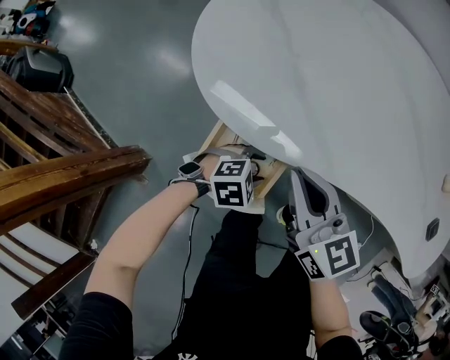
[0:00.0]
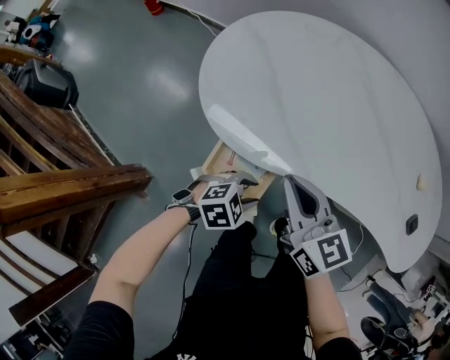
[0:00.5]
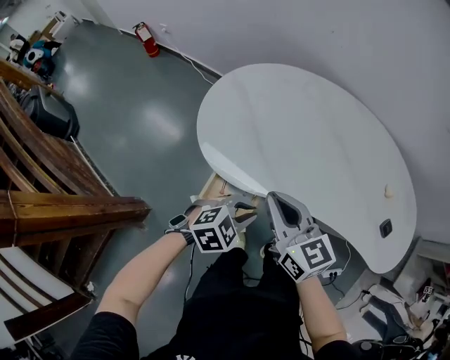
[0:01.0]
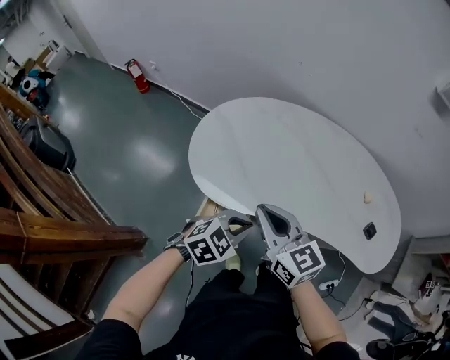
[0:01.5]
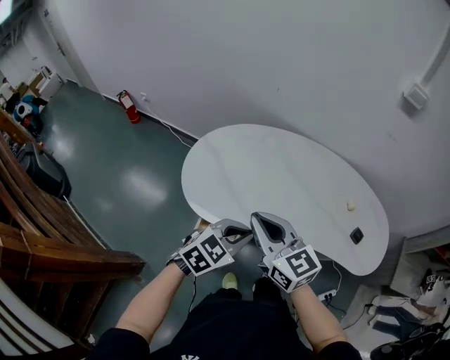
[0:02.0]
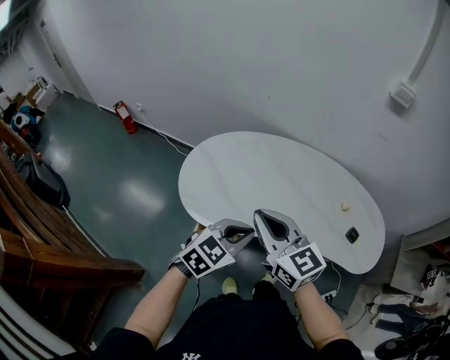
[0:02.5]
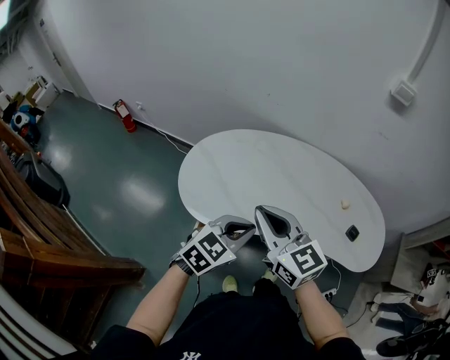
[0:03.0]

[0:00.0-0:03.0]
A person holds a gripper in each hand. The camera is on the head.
0:00.0 to 0:01.5: The two grippers go some 25 cm upward. The left gripper turns by about 20 degrees, and closes its fingers.
0:01.5 to 0:03.0: The grippers both shift upward by approximately 10 cm.

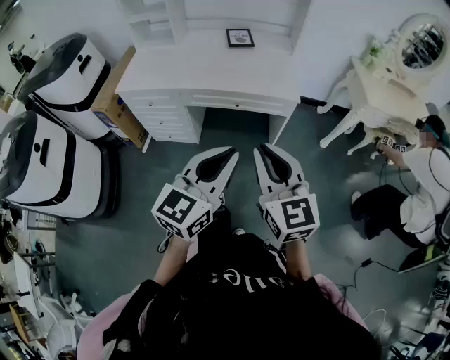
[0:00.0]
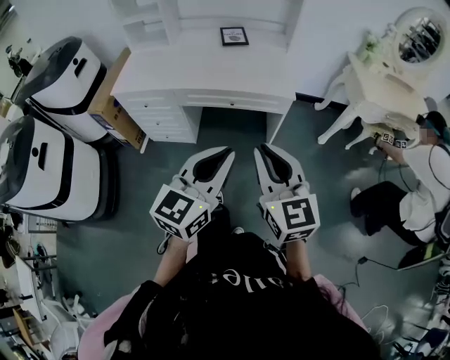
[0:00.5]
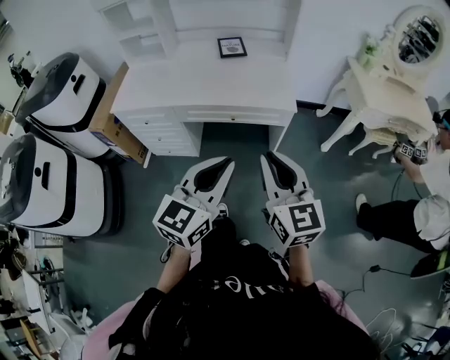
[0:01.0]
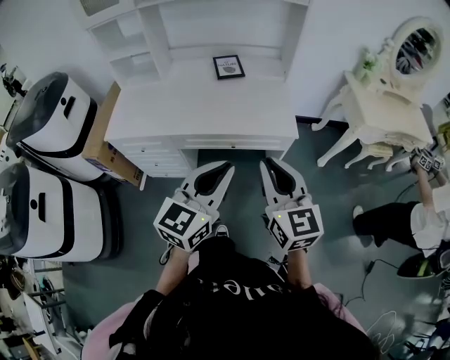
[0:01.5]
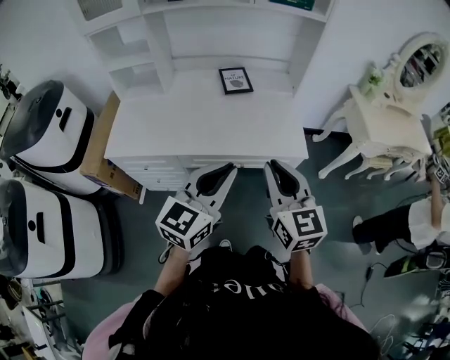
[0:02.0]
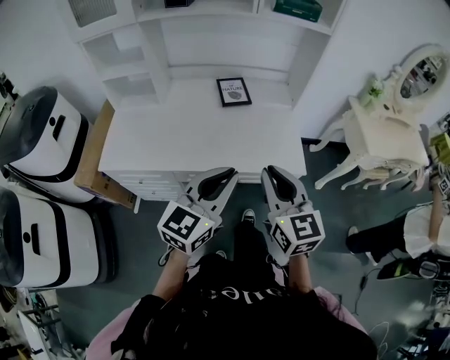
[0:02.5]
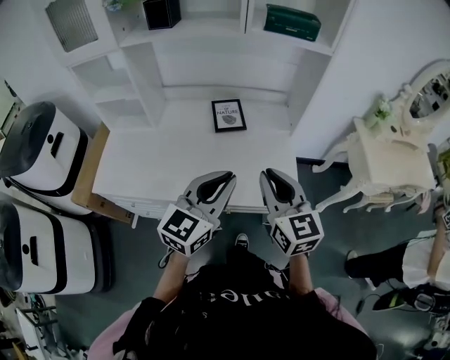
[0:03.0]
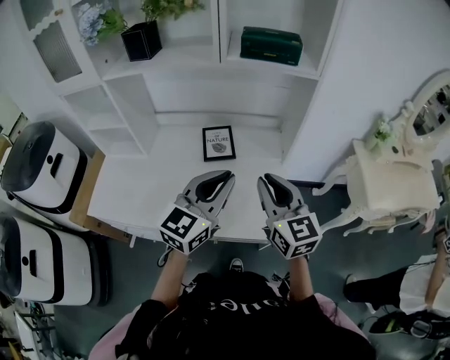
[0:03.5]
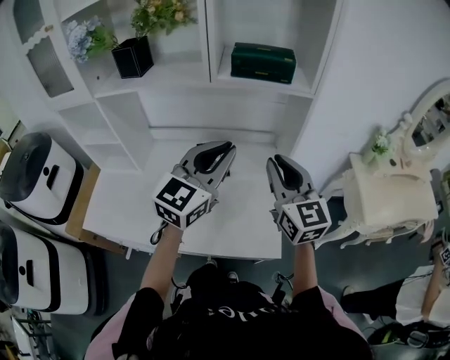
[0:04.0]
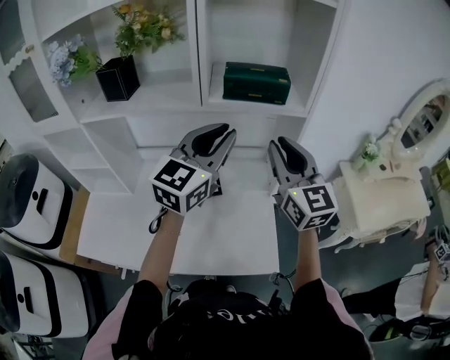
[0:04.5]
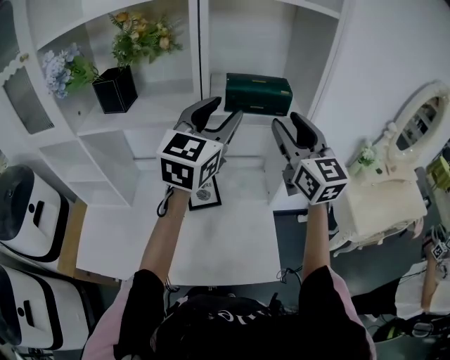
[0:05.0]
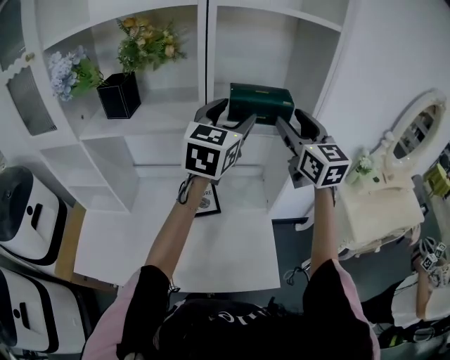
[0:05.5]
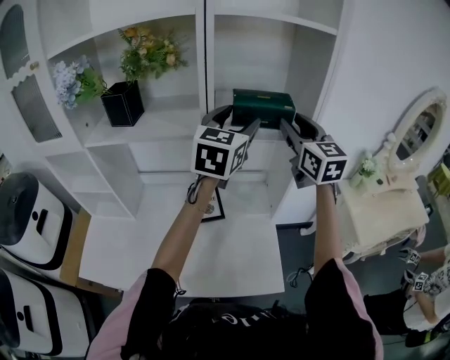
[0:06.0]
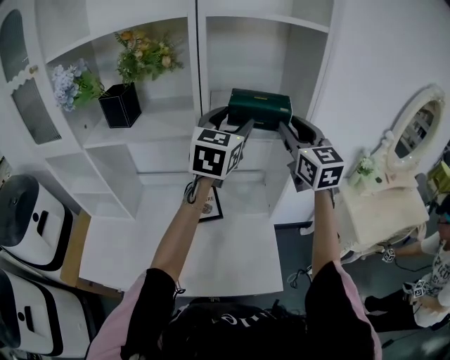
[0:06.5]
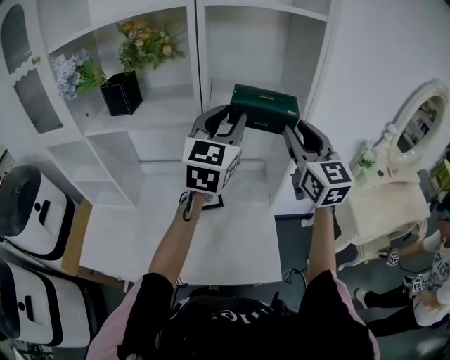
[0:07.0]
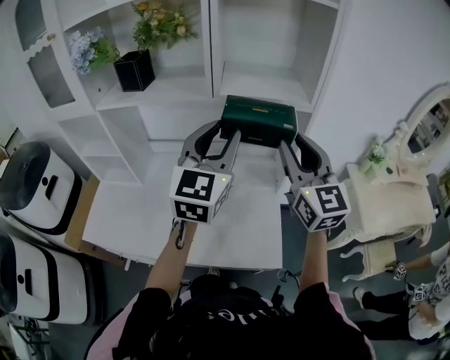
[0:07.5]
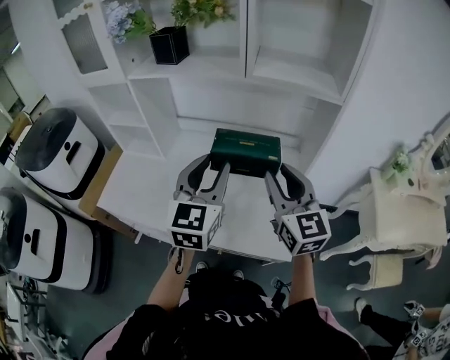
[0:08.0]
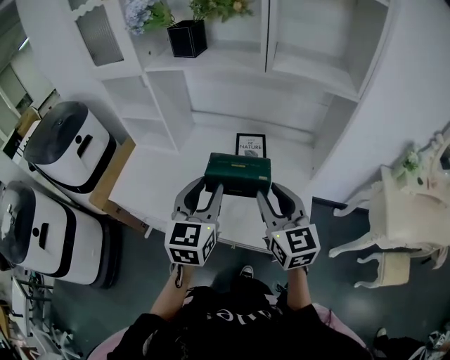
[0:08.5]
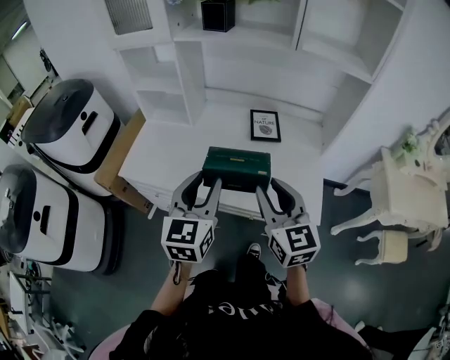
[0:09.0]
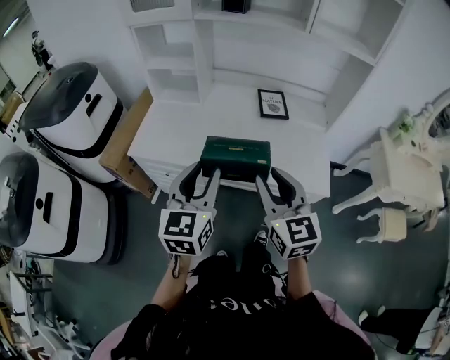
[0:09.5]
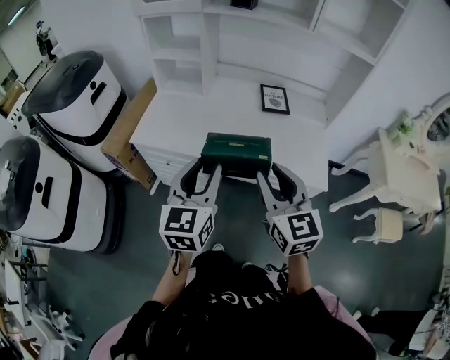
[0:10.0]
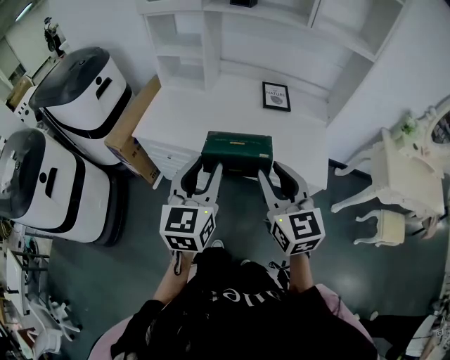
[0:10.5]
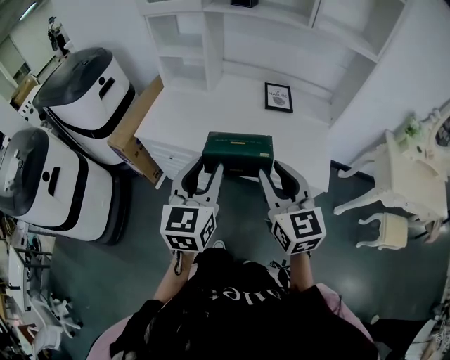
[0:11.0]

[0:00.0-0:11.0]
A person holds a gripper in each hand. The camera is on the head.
0:00.0 to 0:02.0: The left gripper goes some 30 cm forward and to the left. The right gripper moves forward, roughly 25 cm.
0:02.0 to 0:03.5: Both grippers move forward, roughly 30 cm.
0:03.5 to 0:05.5: Both grippers move forward and upward, roughly 35 cm. The right gripper opens up. The left gripper opens.
0:05.5 to 0:07.5: The grippers both shift backward by approximately 15 cm. The left gripper closes up.
0:07.5 to 0:09.0: The two grippers go some 40 cm to the left, backward and downward. The left gripper swivels roughly 30 degrees. The right gripper rotates roughly 20 degrees.
0:09.0 to 0:11.0: Both grippers travel together backward and to the left, about 15 cm.

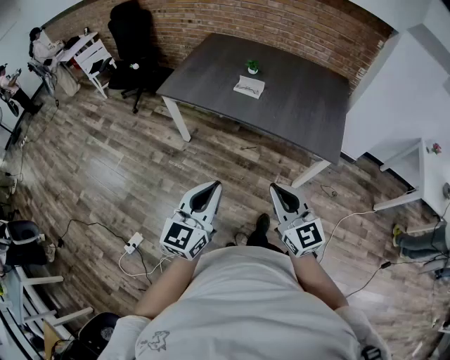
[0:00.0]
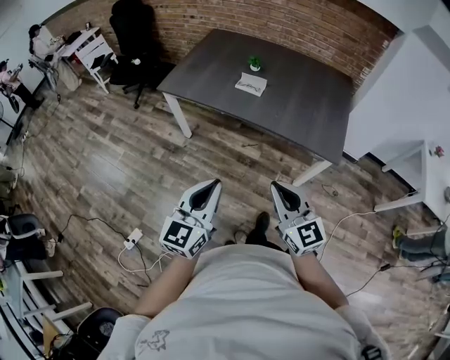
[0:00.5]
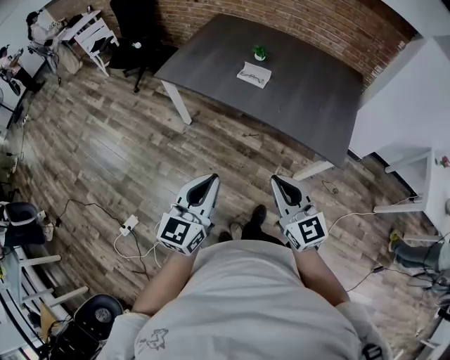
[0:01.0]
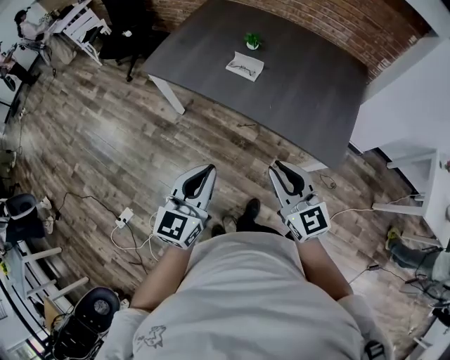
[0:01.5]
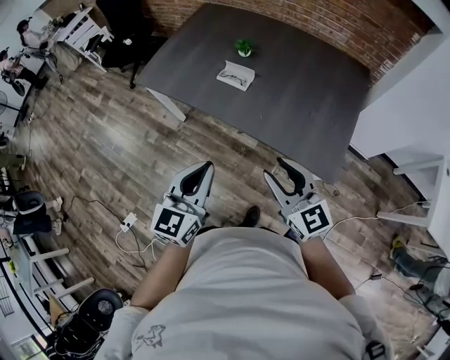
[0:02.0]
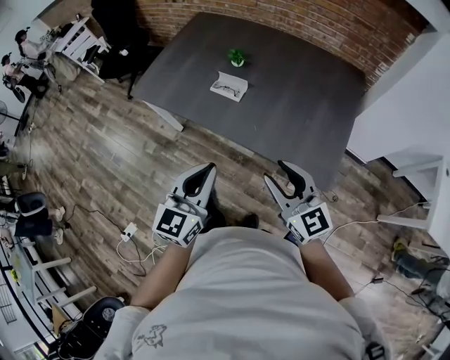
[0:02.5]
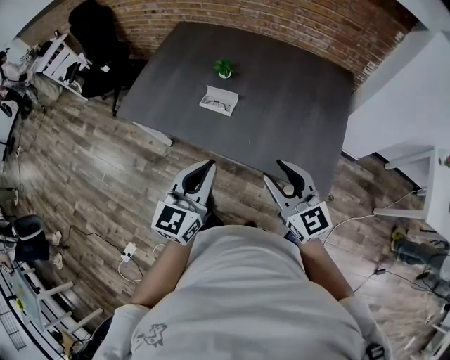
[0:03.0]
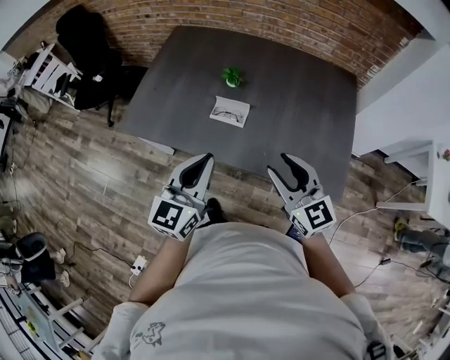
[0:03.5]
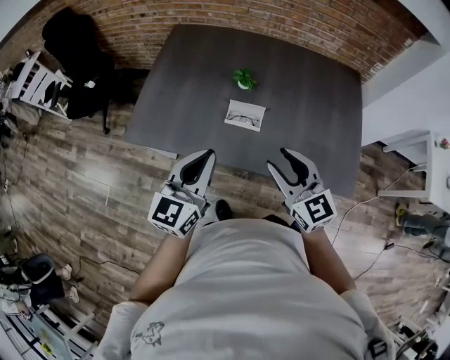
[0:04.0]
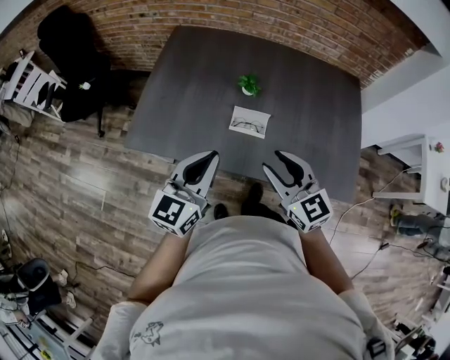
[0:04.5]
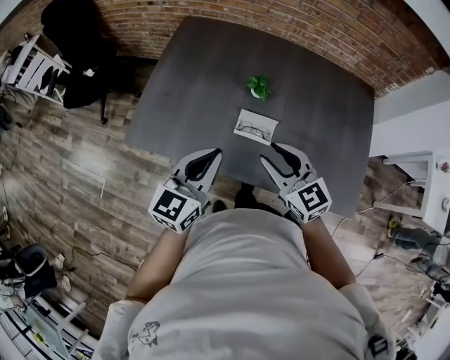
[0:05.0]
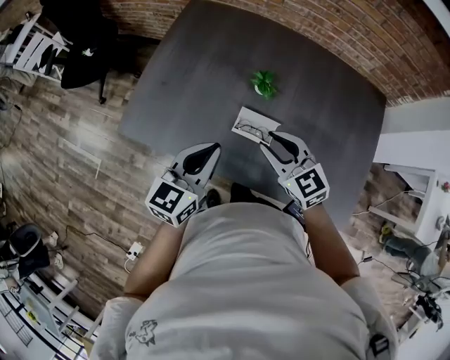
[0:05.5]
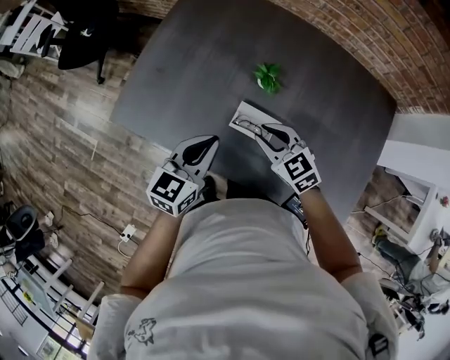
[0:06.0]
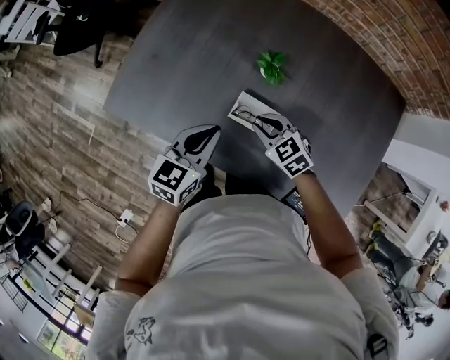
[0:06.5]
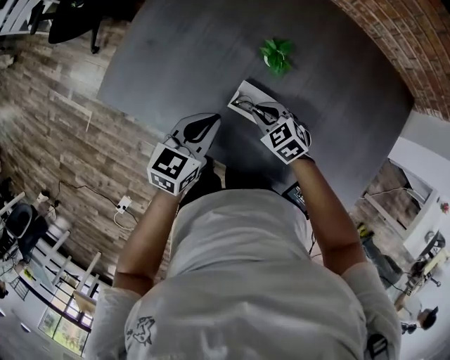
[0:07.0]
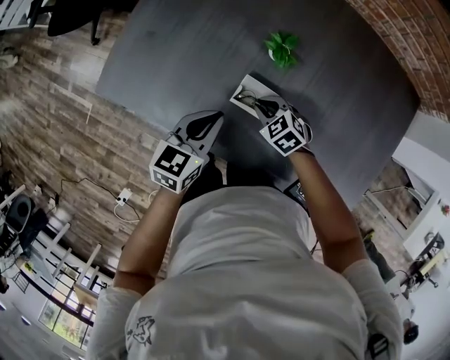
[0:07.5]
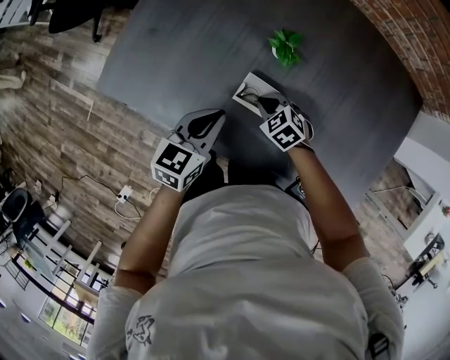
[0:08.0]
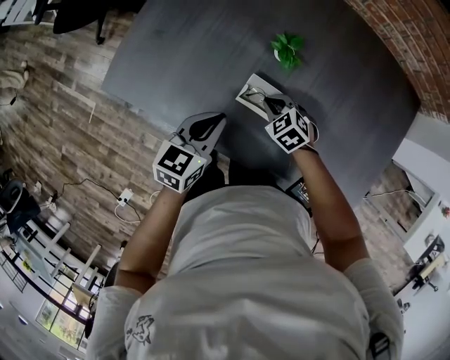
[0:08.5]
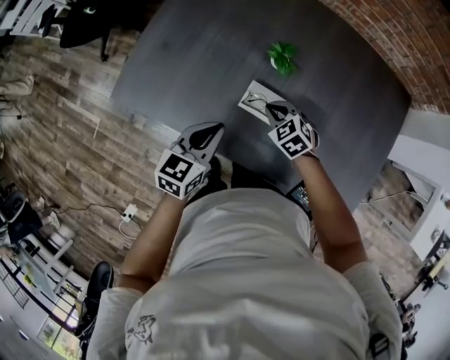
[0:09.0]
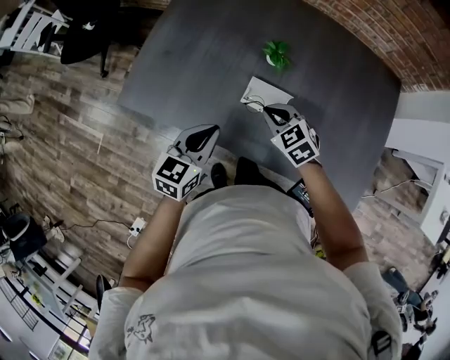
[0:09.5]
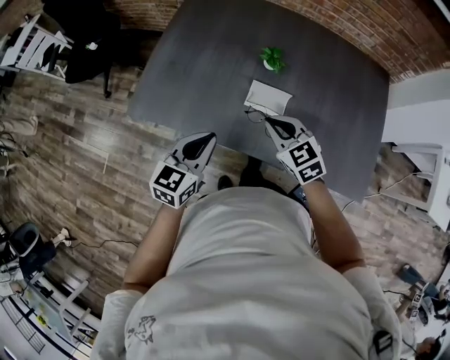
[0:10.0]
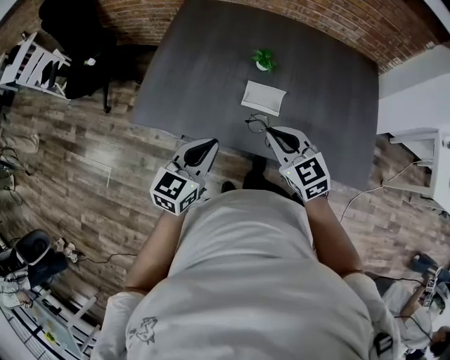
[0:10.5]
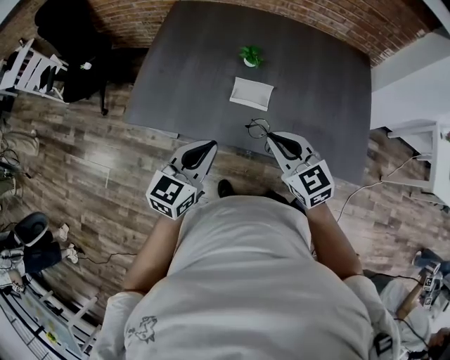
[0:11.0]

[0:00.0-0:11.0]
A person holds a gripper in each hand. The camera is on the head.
0:00.0 to 0:02.0: Both grippers move forward and to the right, about 25 cm. The right gripper opens.
0:02.0 to 0:03.5: The grippers both shift forward by some 20 cm.
0:03.5 to 0:05.5: Both grippers travel together forward, to the left and downward, about 25 cm. The right gripper changes its angle by roughly 20 degrees.
0:05.5 to 0:07.5: The right gripper is displaced downward by about 25 cm, and tips its fingers downward by approximately 30 degrees, while the left gripper shifts some 15 cm downward.
0:07.5 to 0:09.0: The right gripper travels upward by about 5 cm, while the left gripper changes place by about 5 cm.
0:09.0 to 0:11.0: The right gripper shifts about 30 cm upward and backward, and tilts its fingers some 30 degrees upward, while the left gripper travels backward and upward by about 20 cm.

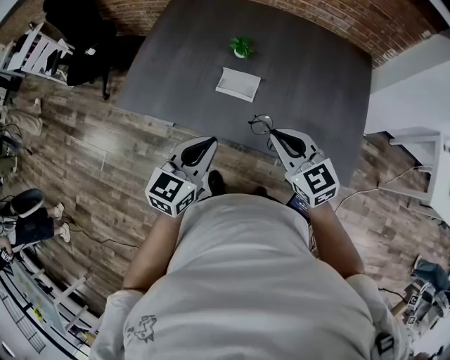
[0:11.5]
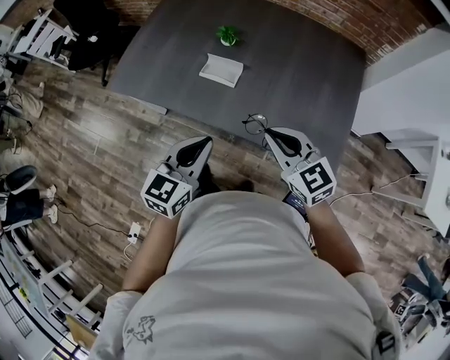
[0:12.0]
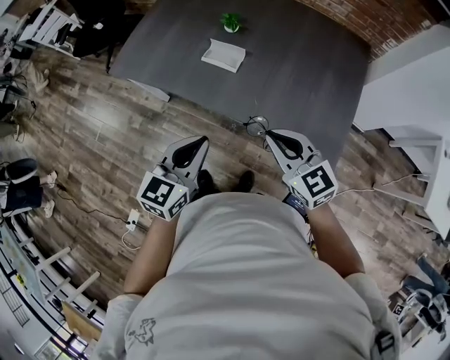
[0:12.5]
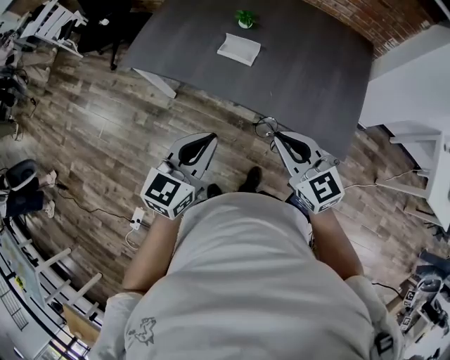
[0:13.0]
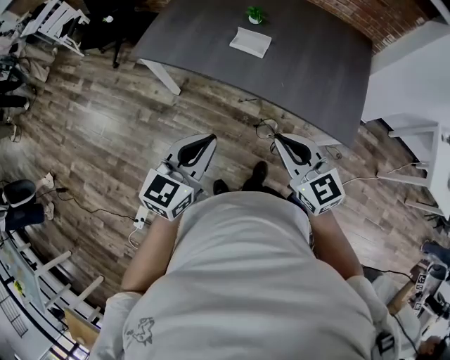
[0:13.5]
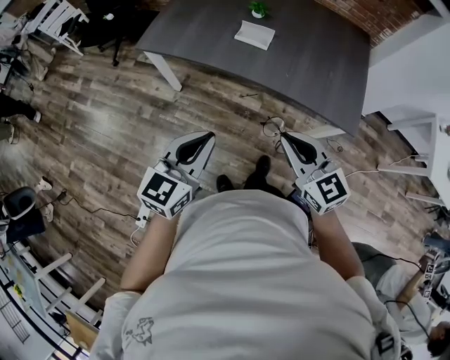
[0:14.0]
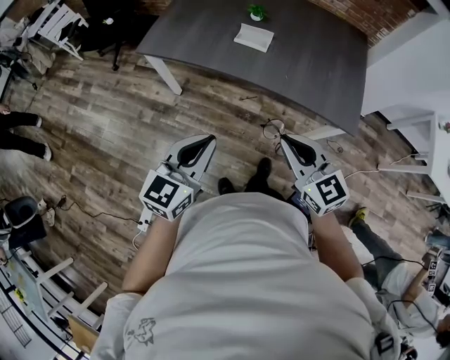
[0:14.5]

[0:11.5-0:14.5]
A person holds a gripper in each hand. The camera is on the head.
0:11.5 to 0:13.0: The grippers both shift backward by approximately 15 cm.
0:13.0 to 0:14.5: The grippers both shift backward and to the left by about 15 cm.
